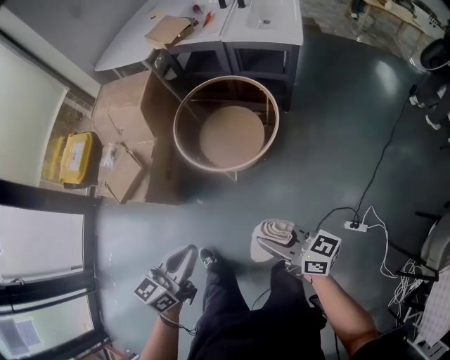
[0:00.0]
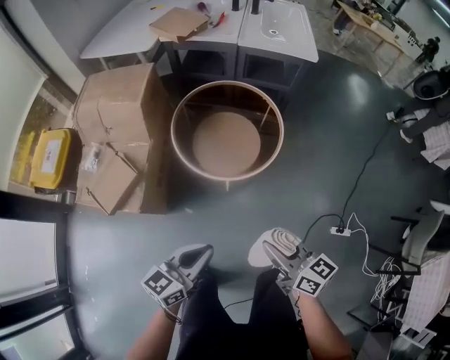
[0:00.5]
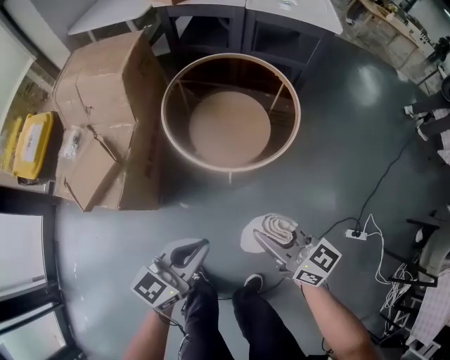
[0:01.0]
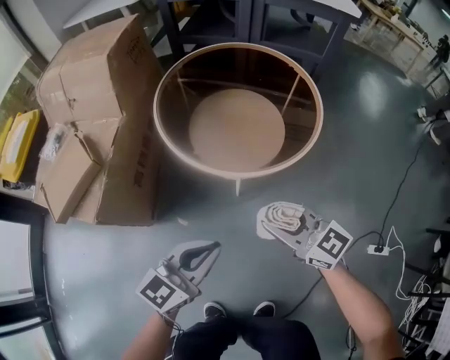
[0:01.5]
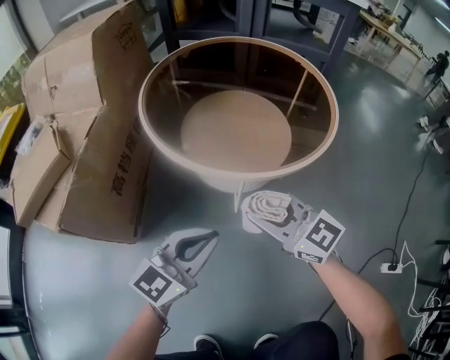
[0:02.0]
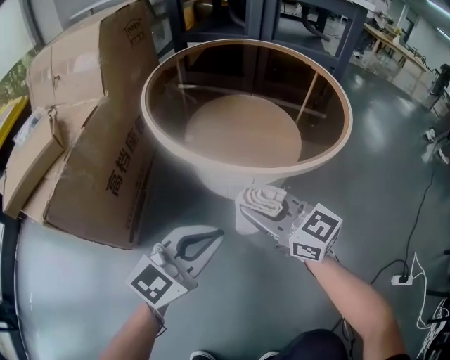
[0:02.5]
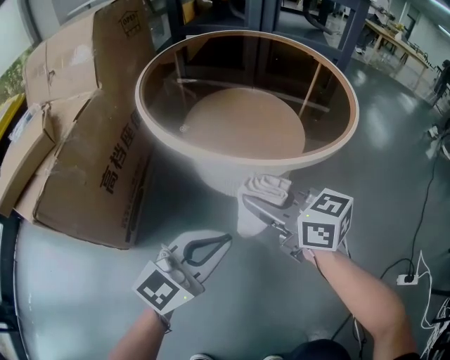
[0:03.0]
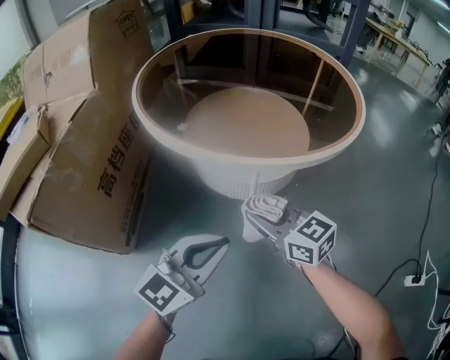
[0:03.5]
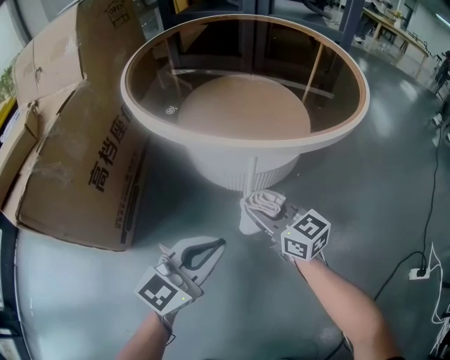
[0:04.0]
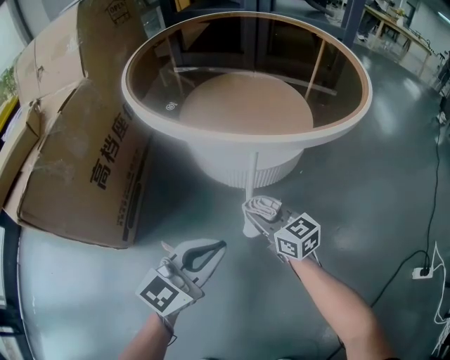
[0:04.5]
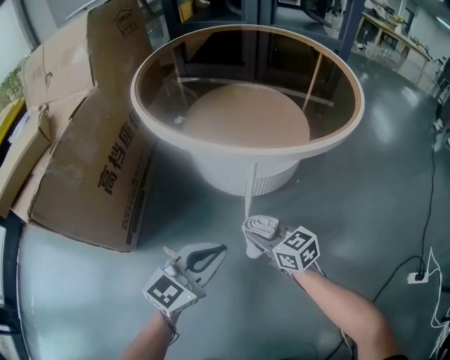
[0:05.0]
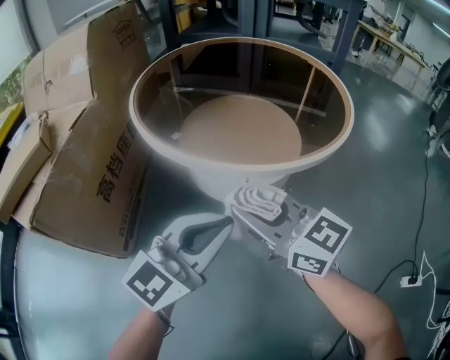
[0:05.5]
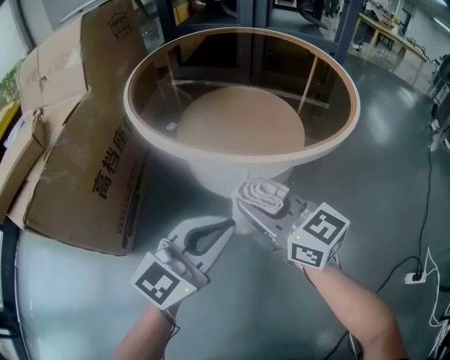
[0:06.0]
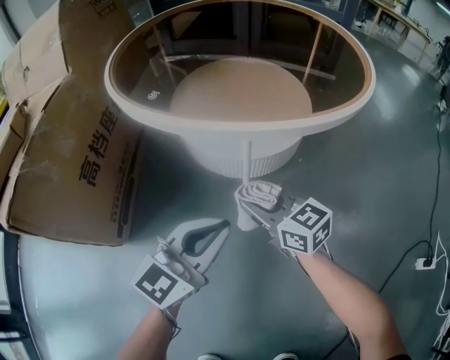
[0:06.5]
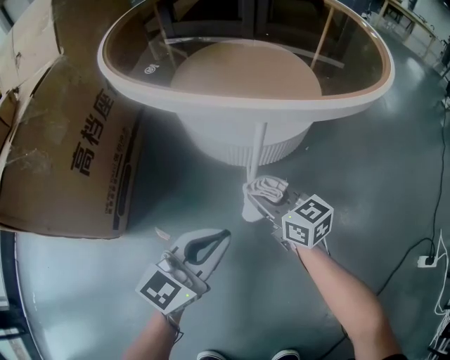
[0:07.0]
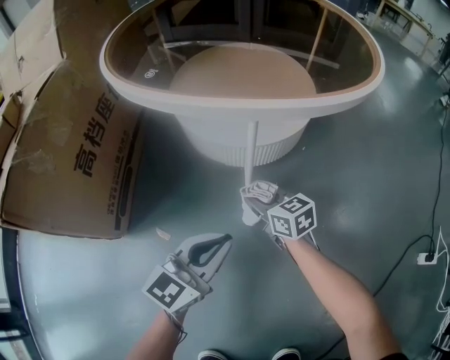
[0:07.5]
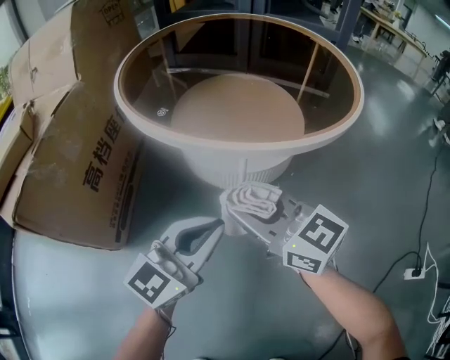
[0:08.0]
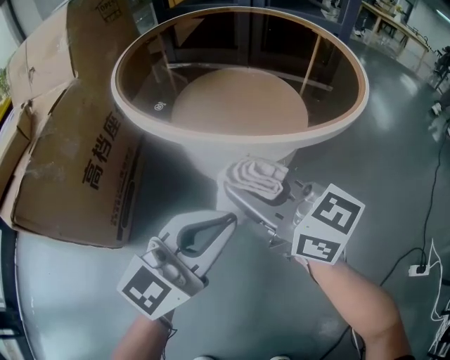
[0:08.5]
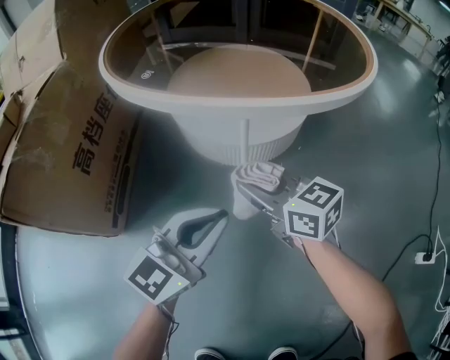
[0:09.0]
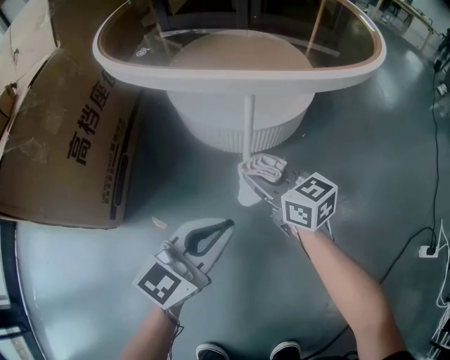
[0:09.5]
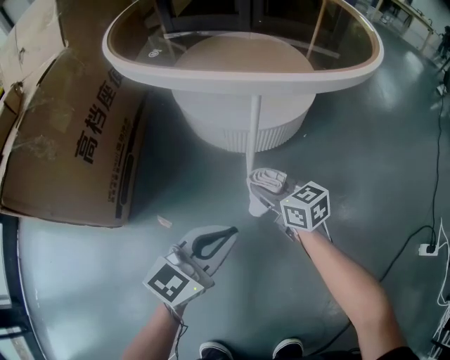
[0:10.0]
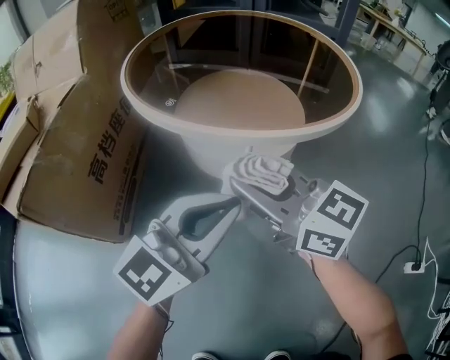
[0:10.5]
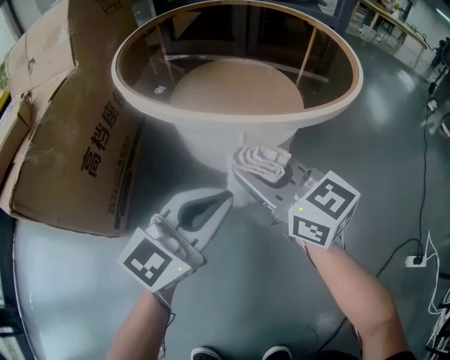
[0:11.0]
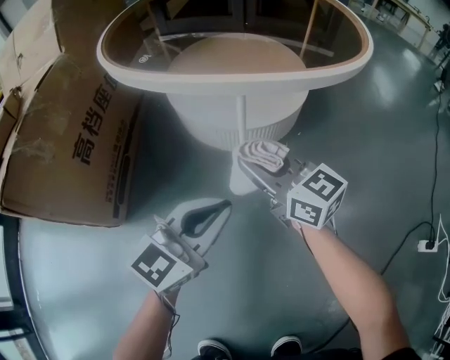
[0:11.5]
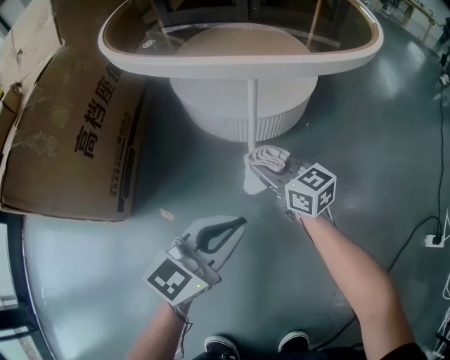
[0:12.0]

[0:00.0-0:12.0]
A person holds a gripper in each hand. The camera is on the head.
0:00.0 to 0:02.0: The right gripper heads downward and forward, covering about 50 cm, and rotates roughly 40 degrees; the left gripper moves downward, some 50 cm, and turns by approximately 30 degrees.
0:02.0 to 0:04.0: Both grippers move downward, approximately 20 cm.
0:04.0 to 0:06.0: The left gripper moves upward, some 10 cm, while the right gripper goes up and down, some 25 cm each way, reversing 2 times.
0:06.0 to 0:08.0: The right gripper goes downward and returns, approximately 25 cm each way, while the left gripper goes downward and returns, roughly 15 cm each way.
0:08.0 to 0:10.0: The left gripper shifts approximately 15 cm downward and backward. Meanwhile the right gripper moves downward, some 25 cm, and turns by approximately 30 degrees.
0:10.0 to 0:12.0: The left gripper goes upward and returns, some 20 cm each way; the right gripper travels upward and back again, approximately 30 cm each way.

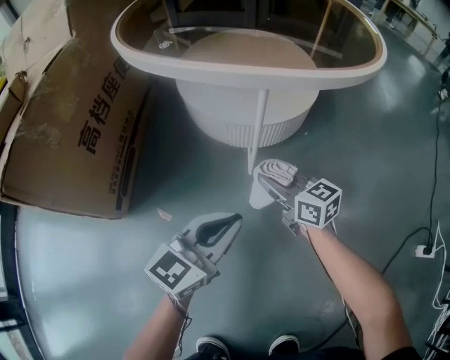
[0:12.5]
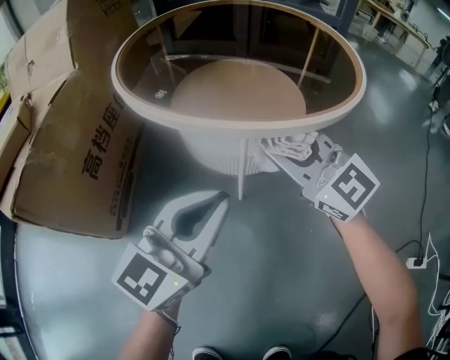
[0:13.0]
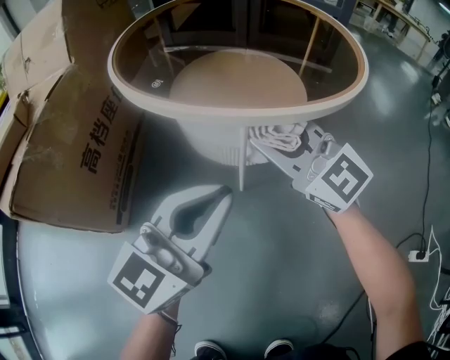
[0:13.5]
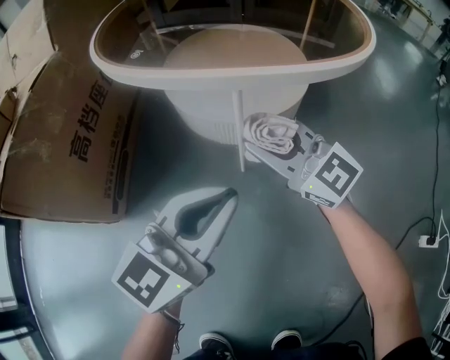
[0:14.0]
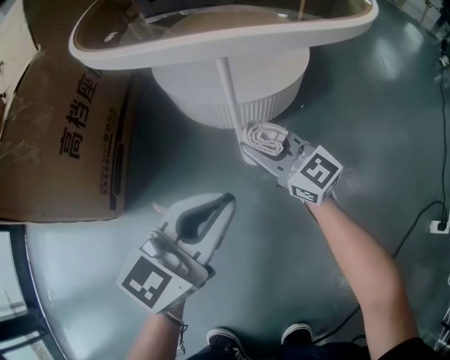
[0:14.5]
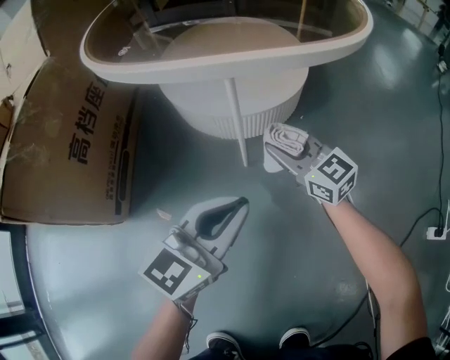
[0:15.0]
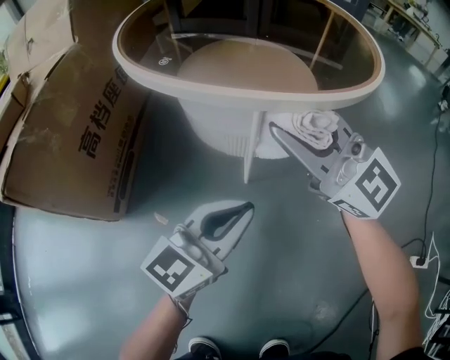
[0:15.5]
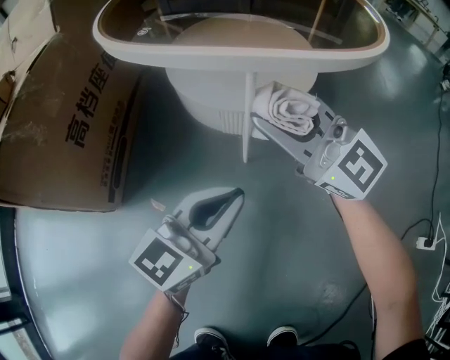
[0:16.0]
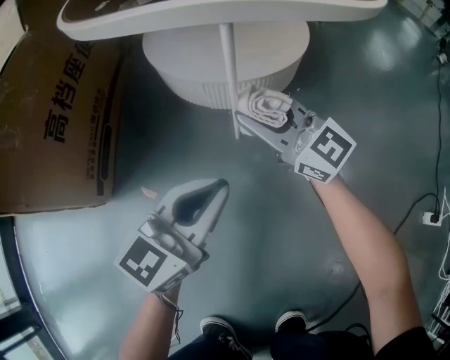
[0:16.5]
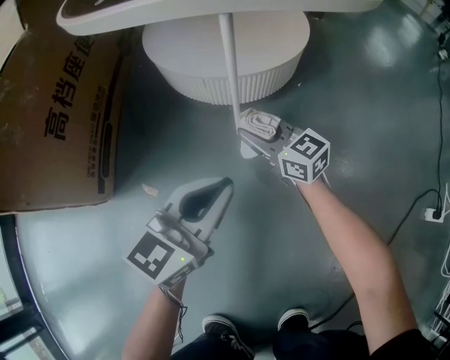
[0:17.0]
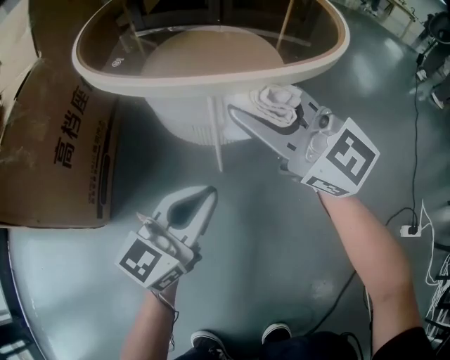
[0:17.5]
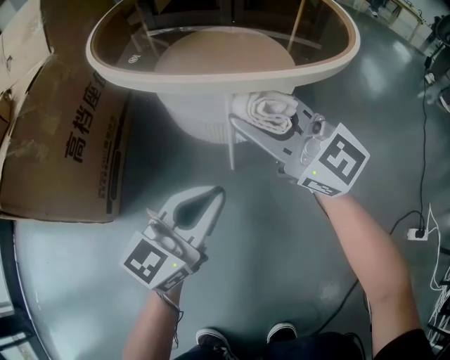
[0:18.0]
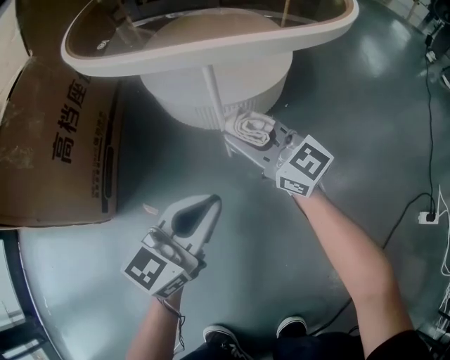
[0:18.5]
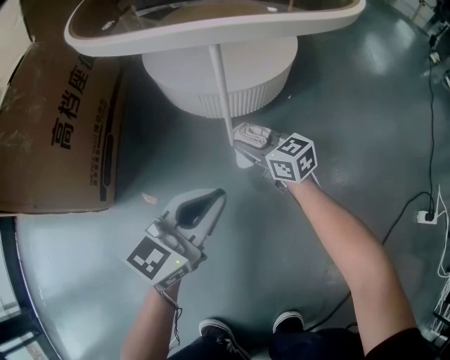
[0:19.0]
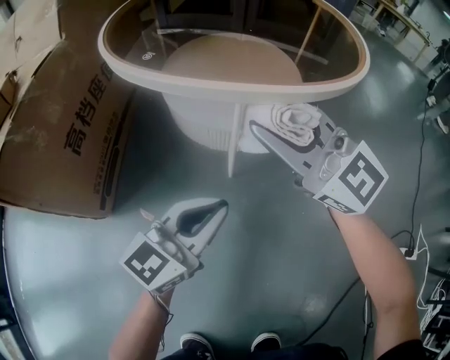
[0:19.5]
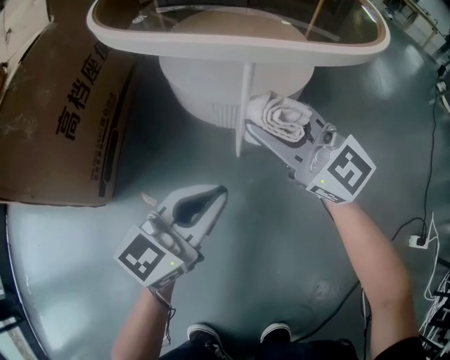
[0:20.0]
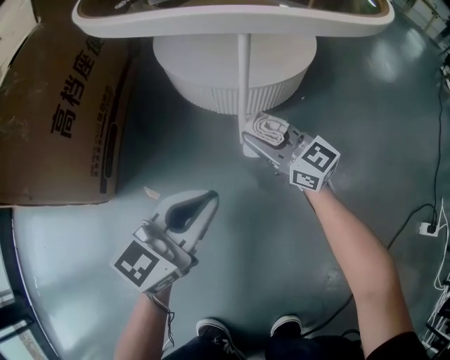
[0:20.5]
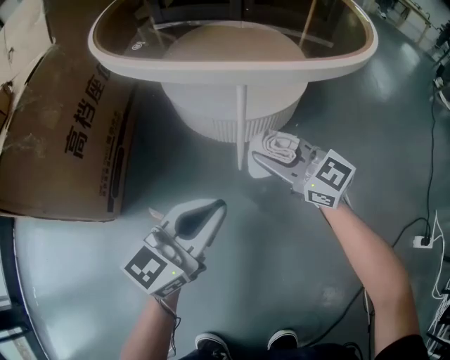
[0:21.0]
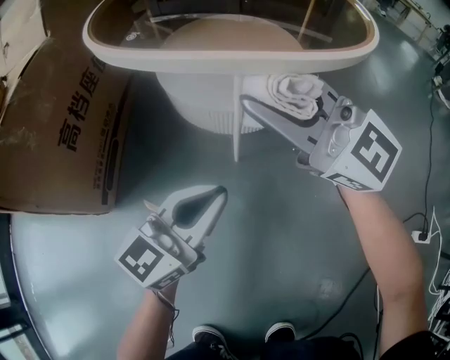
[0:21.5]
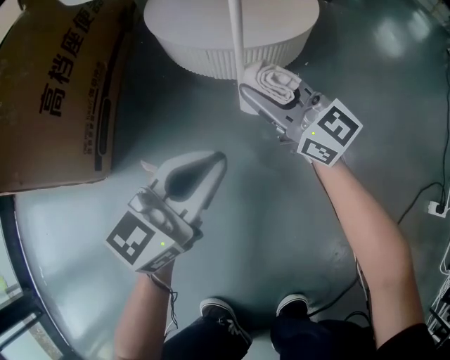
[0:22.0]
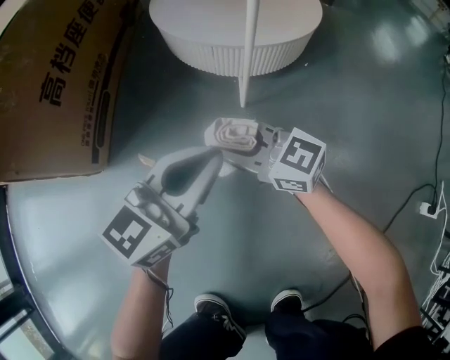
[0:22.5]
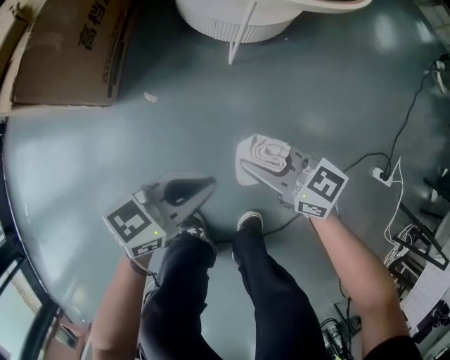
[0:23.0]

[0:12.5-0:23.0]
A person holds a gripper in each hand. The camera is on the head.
0:12.5 to 0:14.5: The right gripper reaches roughly 25 cm upward, then returns, and rotates roughly 30 degrees, while the left gripper goes upward and returns, about 15 cm each way.
0:14.5 to 0:16.5: The right gripper travels upward and back again, about 20 cm each way.
0:16.5 to 0:19.0: The left gripper moves some 5 cm upward and comes back, while the right gripper moves up and down over some 30 cm, changing direction 2 times, and rotates approximately 30 degrees.
0:19.0 to 0:21.0: The right gripper goes up and down, some 30 cm each way, reversing 2 times, and rotates approximately 30 degrees. Meanwhile the left gripper goes up and down, some 5 cm each way, reversing 2 times.
0:21.0 to 0:23.0: The left gripper shifts by roughly 20 cm, and changes its angle by about 30 degrees, while the right gripper swings up and down, approximately 25 cm each way, with 2 reversals, and changes its angle by about 30 degrees.

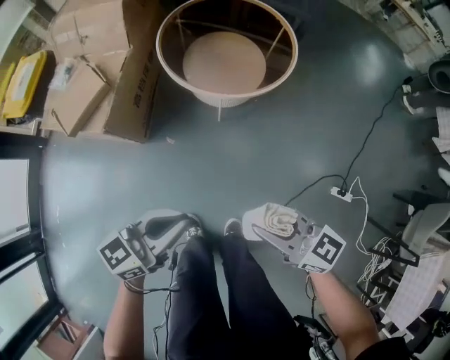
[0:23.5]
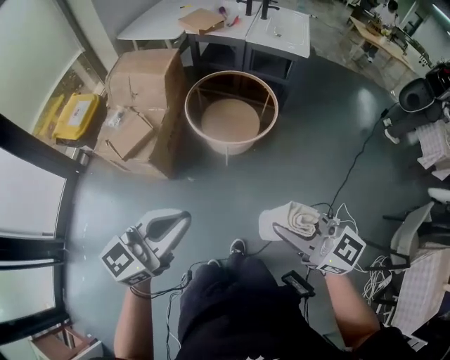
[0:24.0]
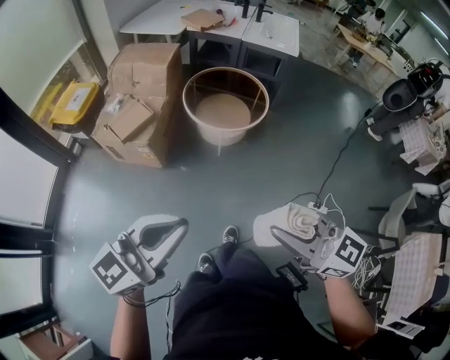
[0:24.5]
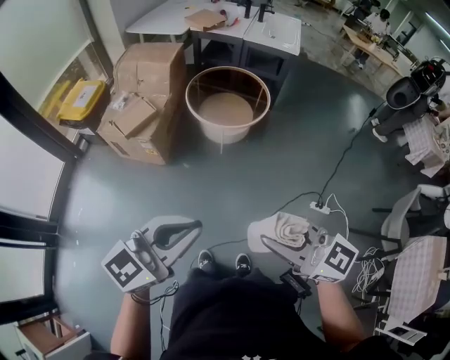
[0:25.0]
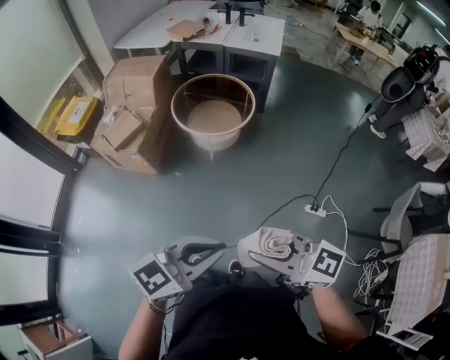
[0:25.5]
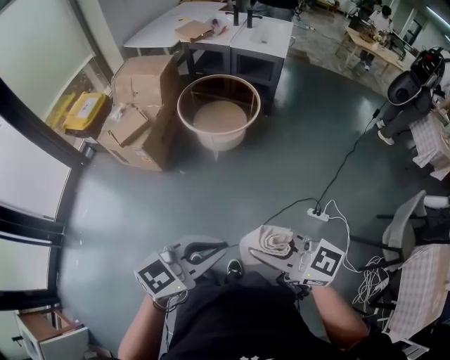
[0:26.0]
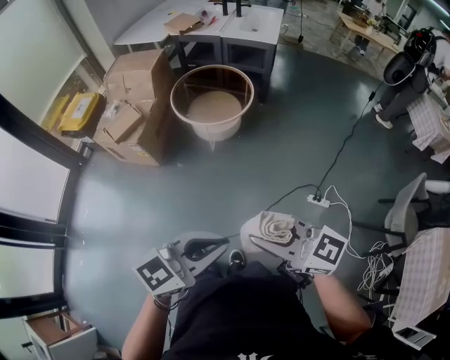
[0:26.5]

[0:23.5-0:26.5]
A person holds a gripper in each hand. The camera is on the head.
0:23.5 to 0:25.0: Both grippers move upward and backward, approximately 50 cm. The left gripper turns by some 30 degrees.
0:25.0 to 0:26.5: The left gripper moves some 25 cm; the right gripper moves approximately 15 cm.

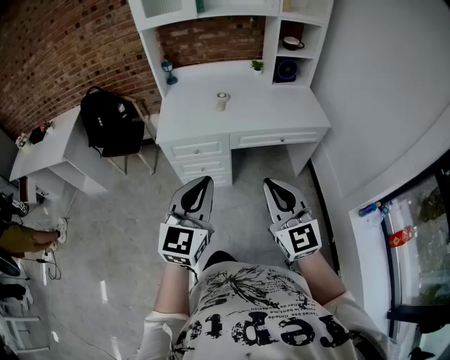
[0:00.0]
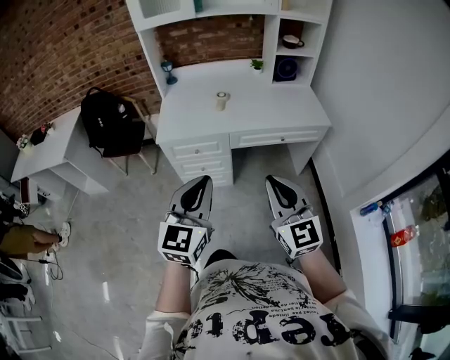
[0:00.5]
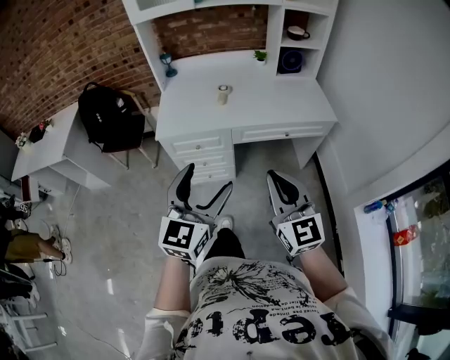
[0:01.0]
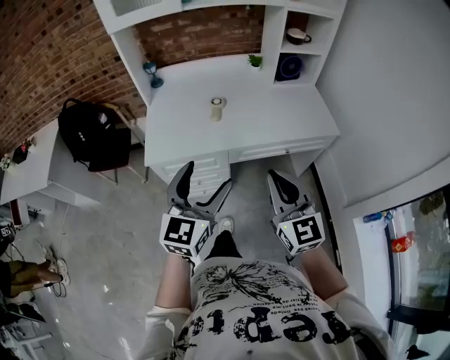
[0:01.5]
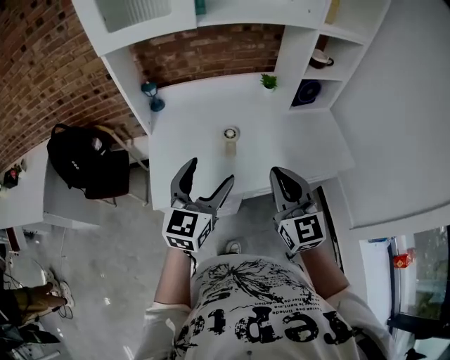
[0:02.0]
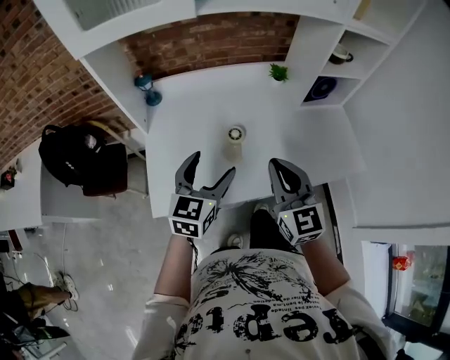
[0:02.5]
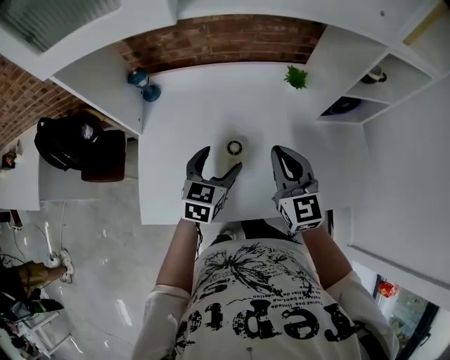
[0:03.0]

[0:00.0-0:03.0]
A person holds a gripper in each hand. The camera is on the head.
0:00.0 to 0:01.5: Both grippers move forward, some 25 cm. The left gripper opens its fingers.
0:01.5 to 0:03.0: The pair of grippers is taken forward, some 50 cm. The left gripper swivels roughly 30 degrees.
